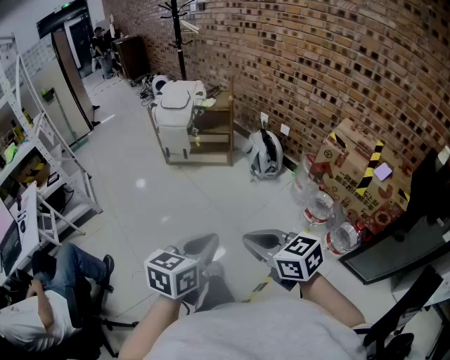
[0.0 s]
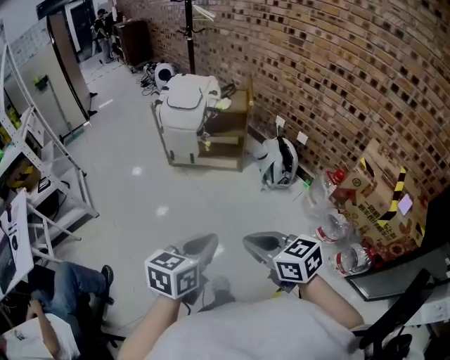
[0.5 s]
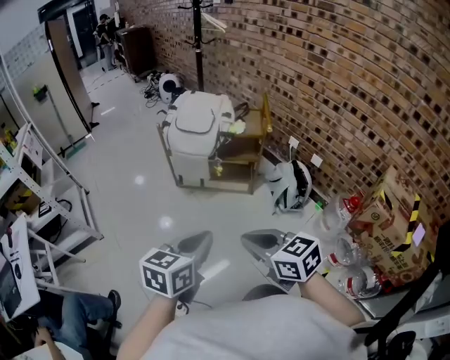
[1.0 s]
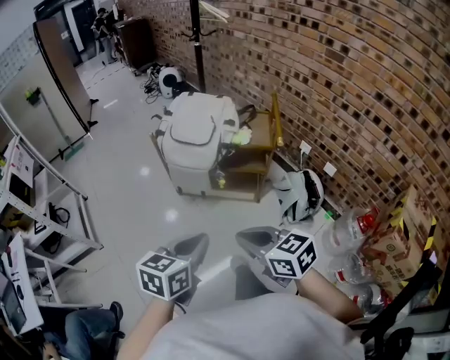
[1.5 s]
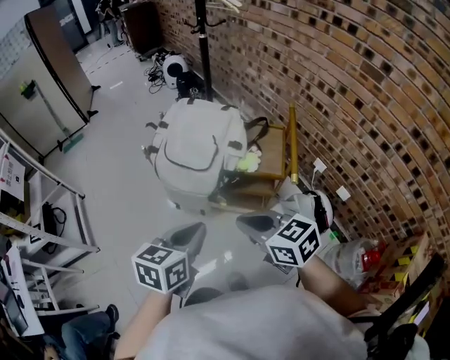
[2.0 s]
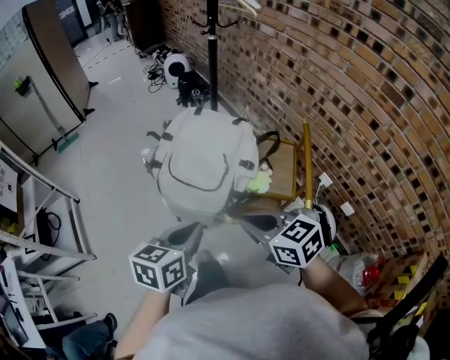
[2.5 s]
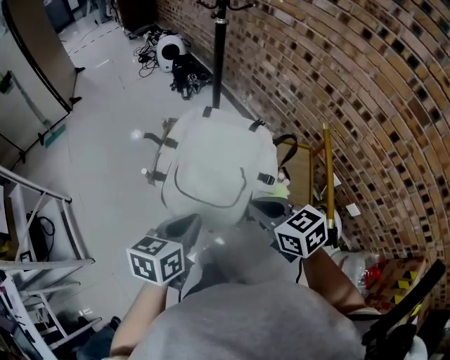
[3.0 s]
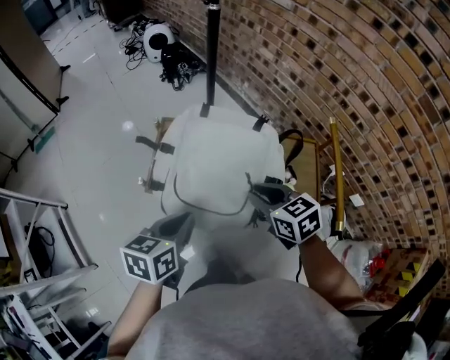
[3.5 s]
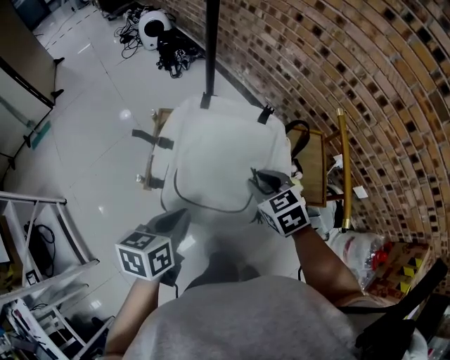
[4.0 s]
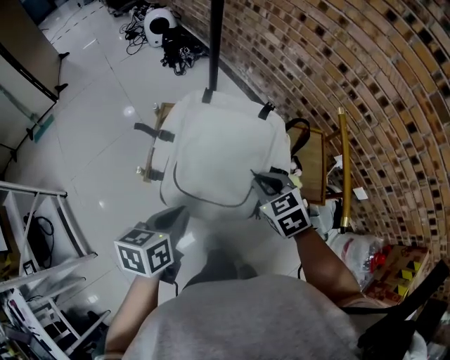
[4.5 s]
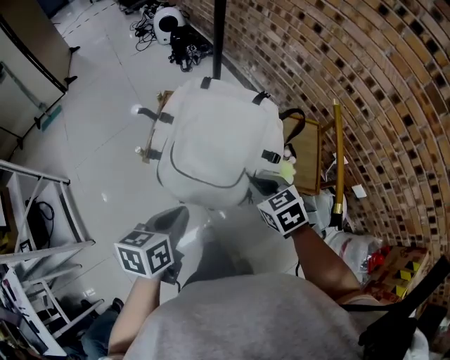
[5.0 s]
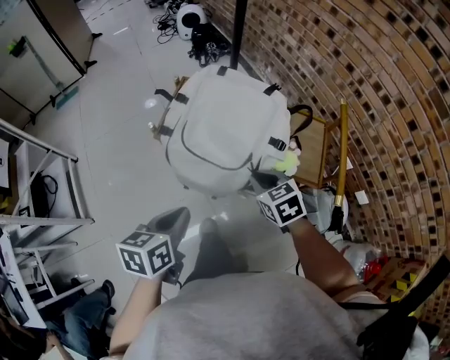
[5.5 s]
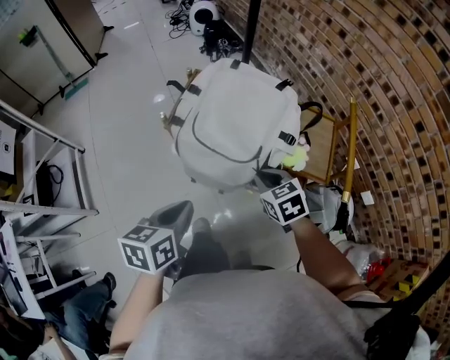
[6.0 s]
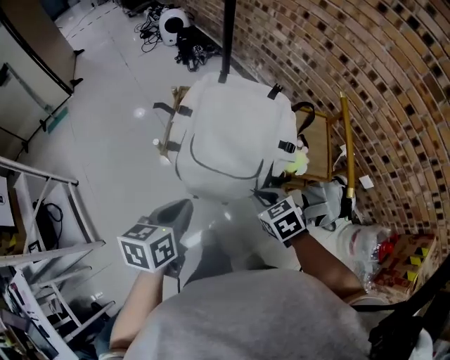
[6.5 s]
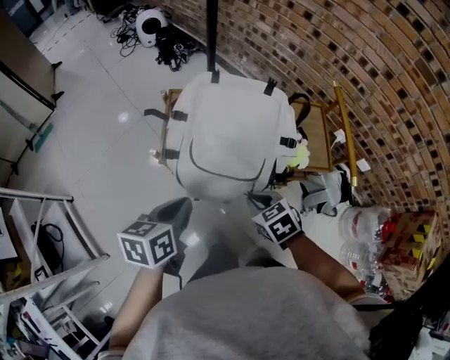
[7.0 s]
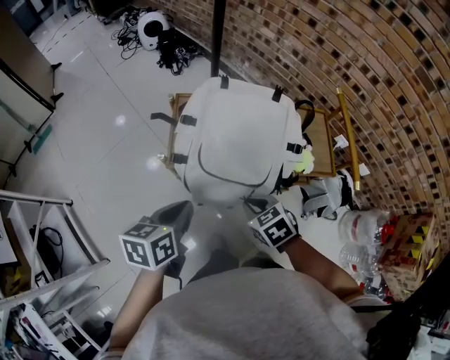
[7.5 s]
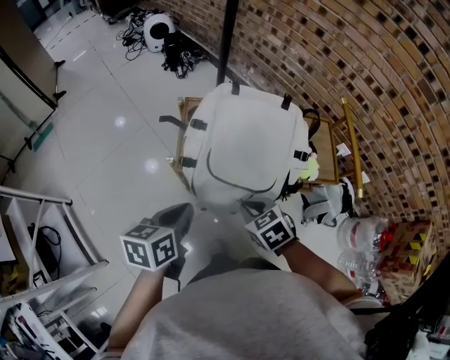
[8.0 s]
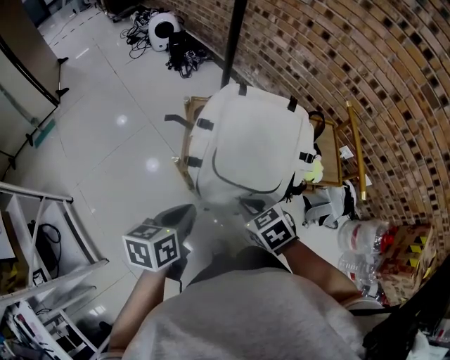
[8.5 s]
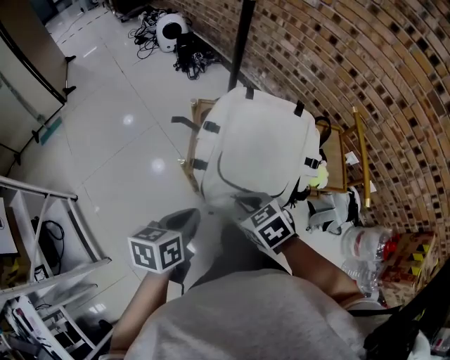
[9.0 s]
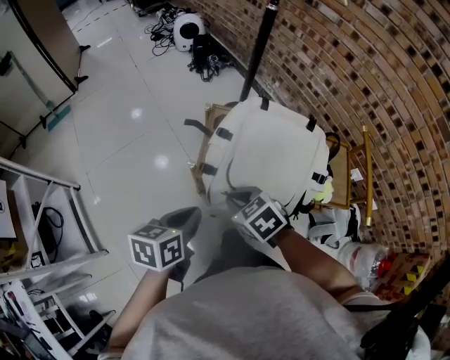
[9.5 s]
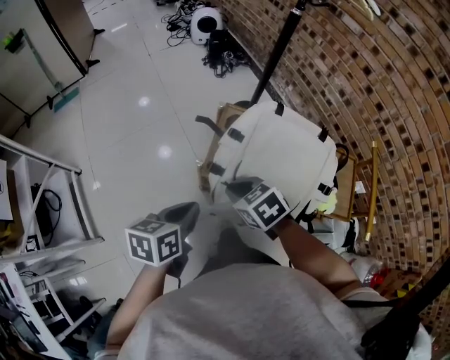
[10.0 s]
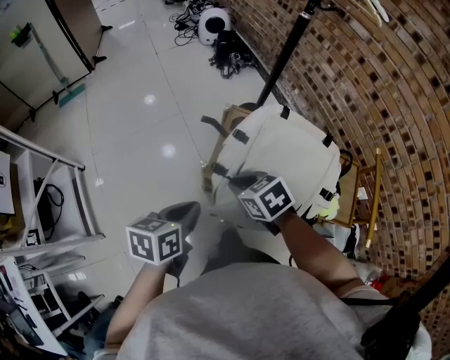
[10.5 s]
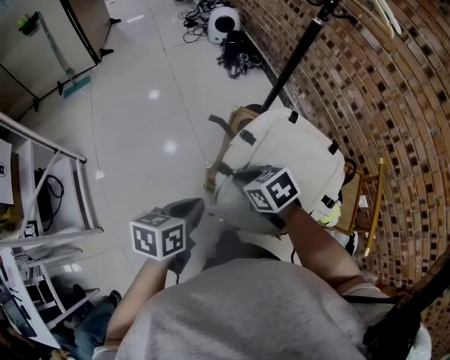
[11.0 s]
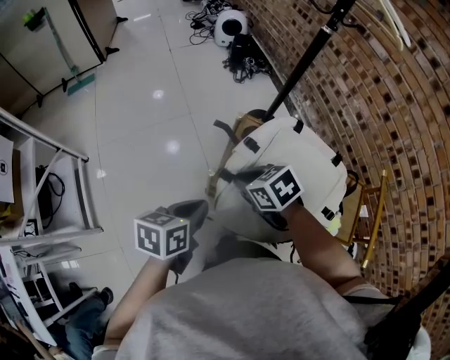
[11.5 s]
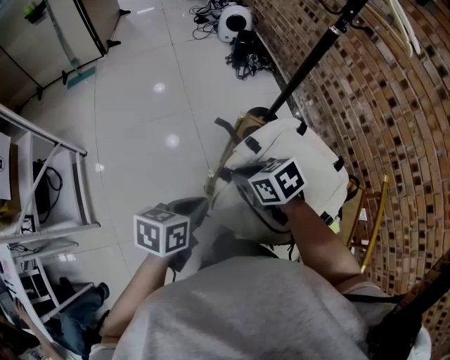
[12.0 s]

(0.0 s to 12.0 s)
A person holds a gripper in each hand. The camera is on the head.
0.0 s - 2.0 s: The pair of grippers is taken forward, about 80 cm.
2.0 s - 4.0 s: The left gripper heads forward and to the left, covering about 30 cm, while the right gripper goes approximately 35 cm forward and downward, swivels about 30 degrees, and opens its fingers.
4.0 s - 6.0 s: The two grippers go about 15 cm backward.
6.0 s - 8.0 s: The left gripper heads to the left and forward, covering approximately 15 cm. Meanwhile the right gripper travels to the left by roughly 15 cm.
8.0 s - 10.0 s: The left gripper shifts by some 5 cm. The right gripper goes roughly 15 cm to the left and forward.
10.0 s - 12.0 s: The right gripper heads forward, covering approximately 10 cm.

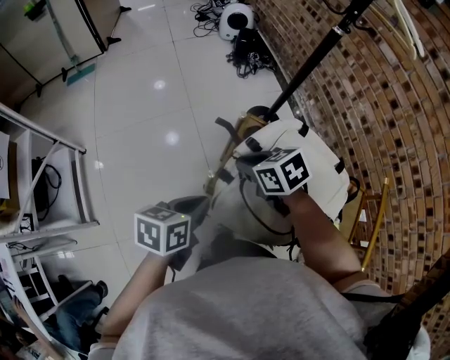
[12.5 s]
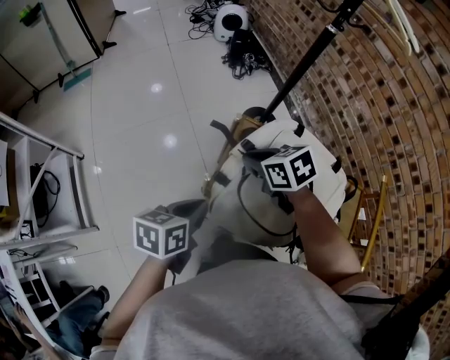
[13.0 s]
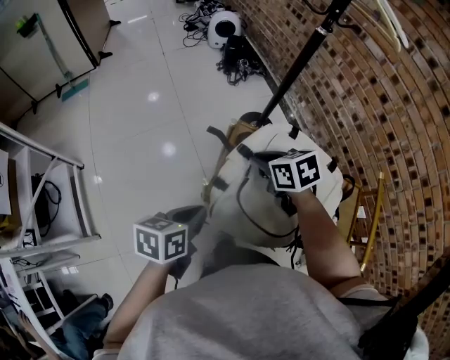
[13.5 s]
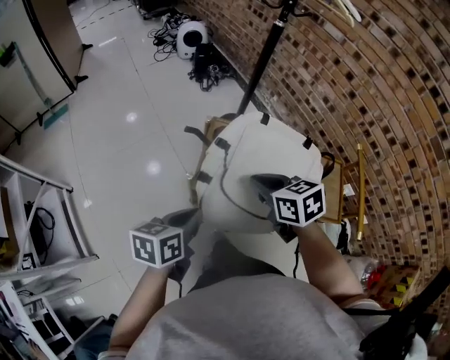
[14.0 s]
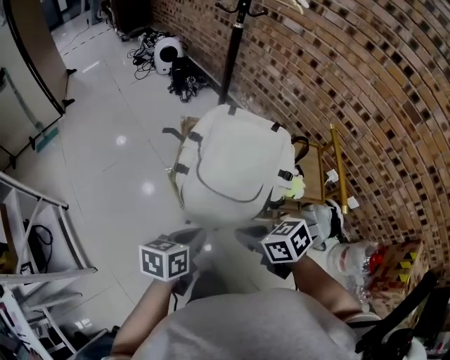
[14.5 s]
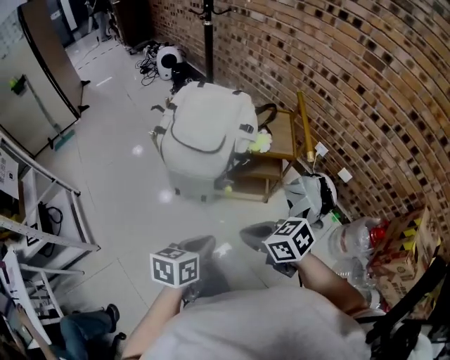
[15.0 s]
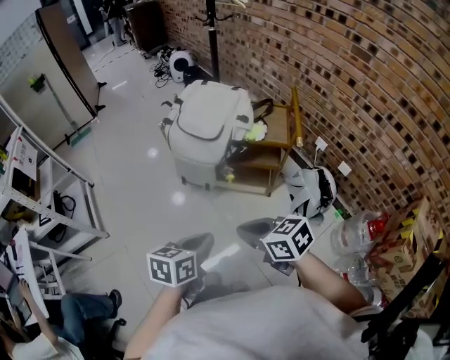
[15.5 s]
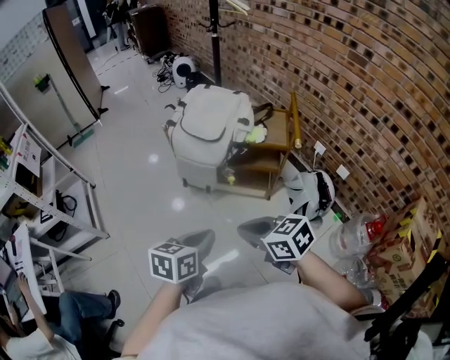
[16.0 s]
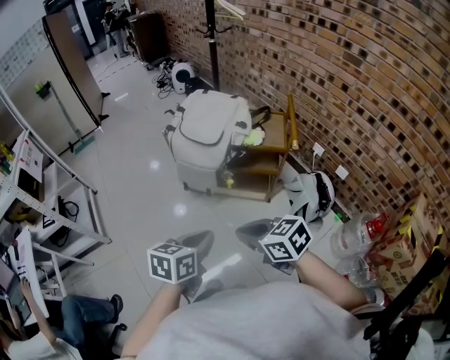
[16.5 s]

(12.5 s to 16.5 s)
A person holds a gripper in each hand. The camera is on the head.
12.5 s - 14.5 s: The right gripper shifts roughly 30 cm backward, and changes its angle by about 20 degrees. Meanwhile the left gripper heads backward and to the right, covering approximately 20 cm.
14.5 s - 16.5 s: Both grippers travel together backward, about 35 cm.

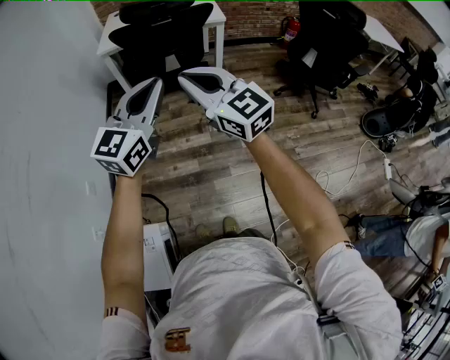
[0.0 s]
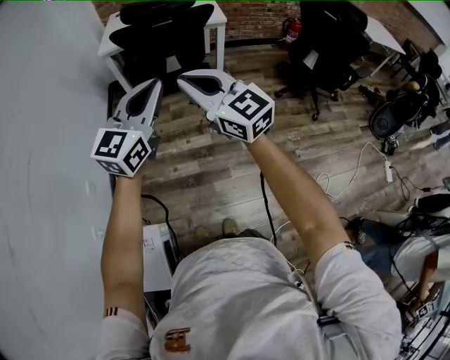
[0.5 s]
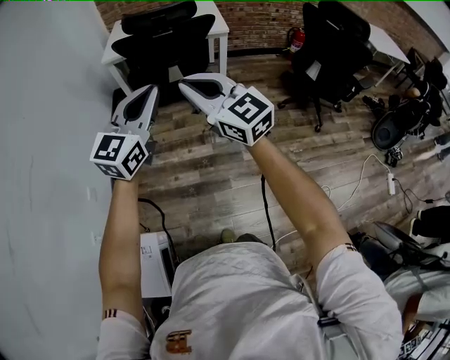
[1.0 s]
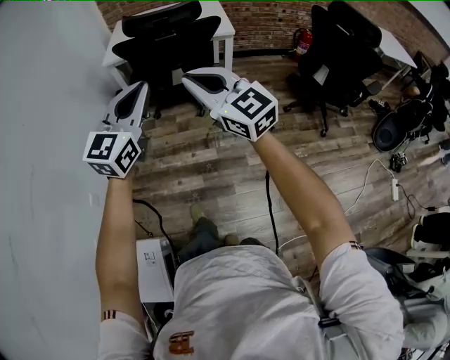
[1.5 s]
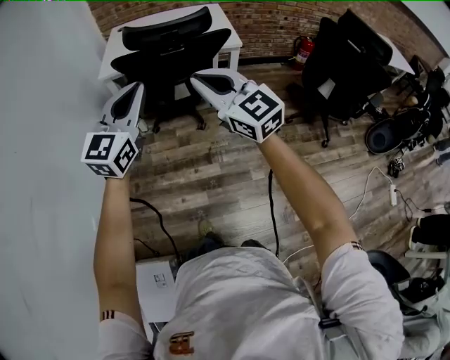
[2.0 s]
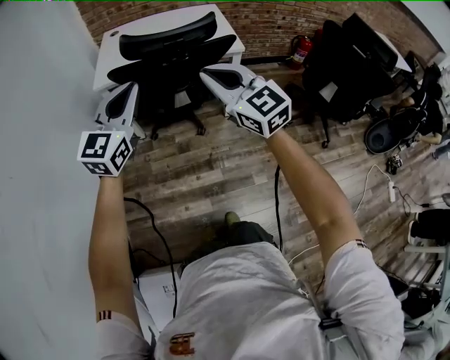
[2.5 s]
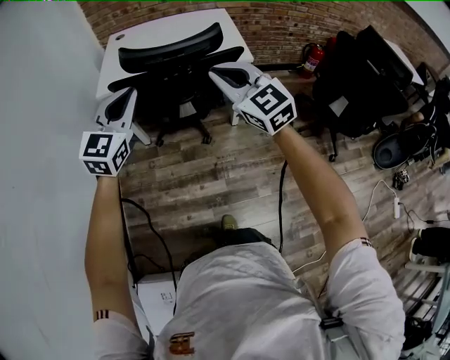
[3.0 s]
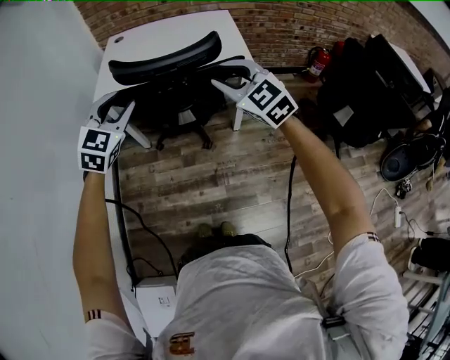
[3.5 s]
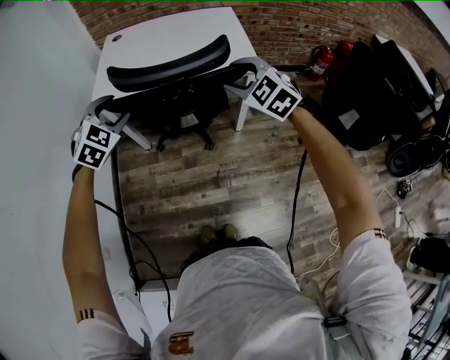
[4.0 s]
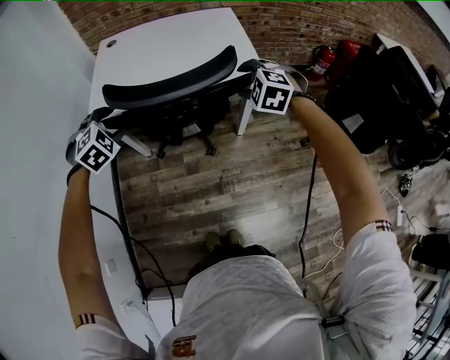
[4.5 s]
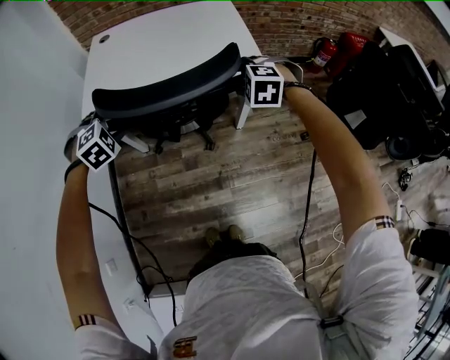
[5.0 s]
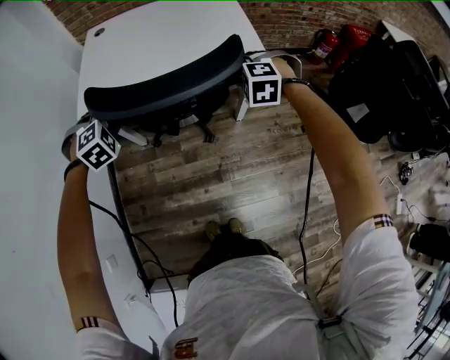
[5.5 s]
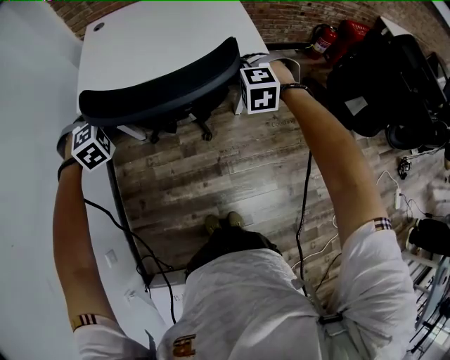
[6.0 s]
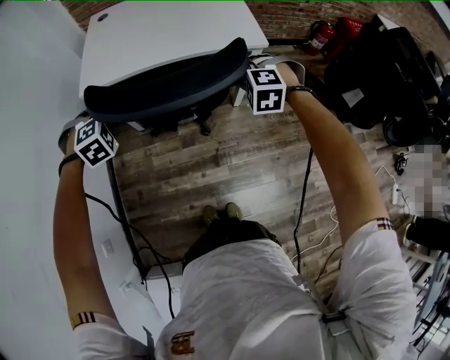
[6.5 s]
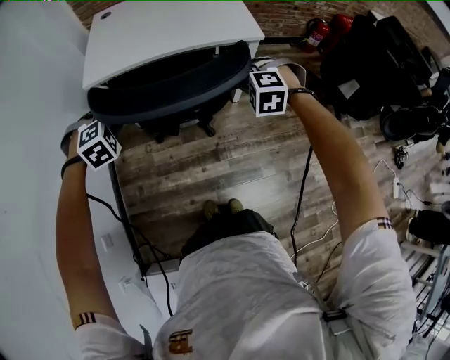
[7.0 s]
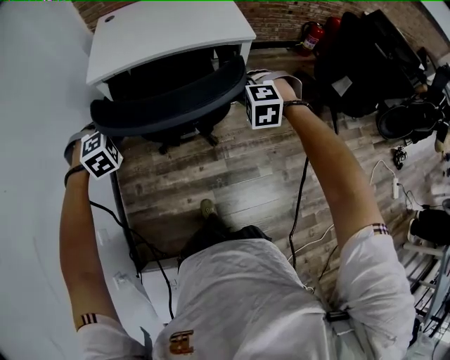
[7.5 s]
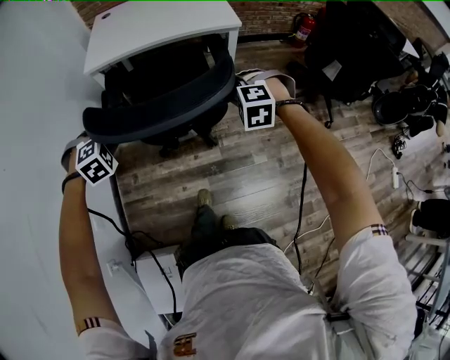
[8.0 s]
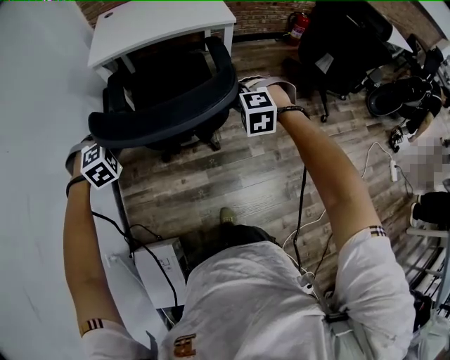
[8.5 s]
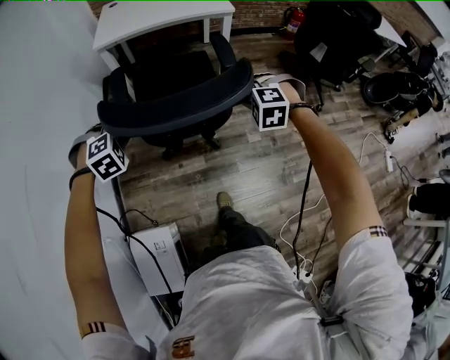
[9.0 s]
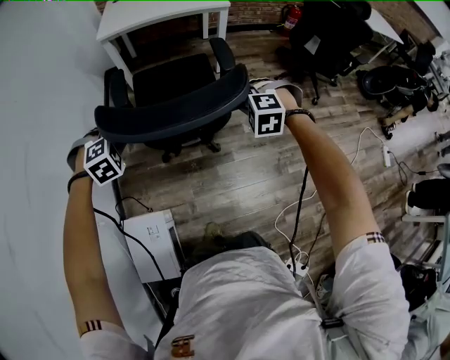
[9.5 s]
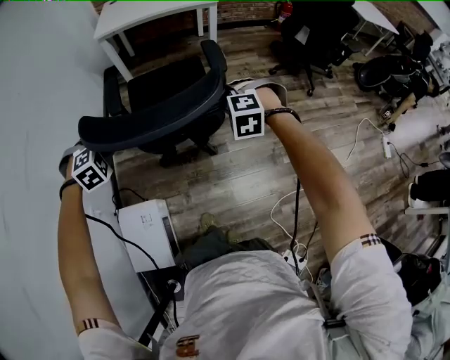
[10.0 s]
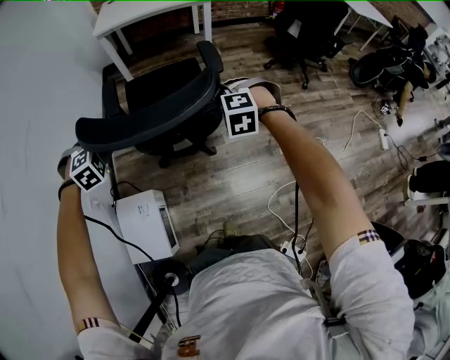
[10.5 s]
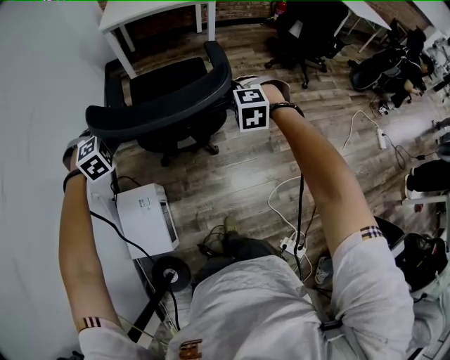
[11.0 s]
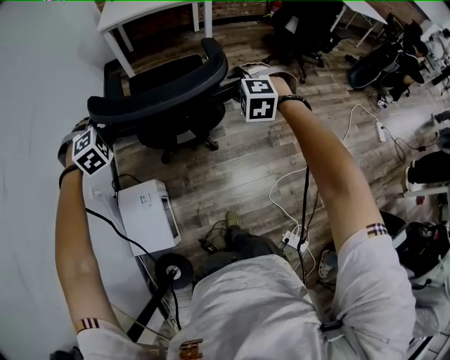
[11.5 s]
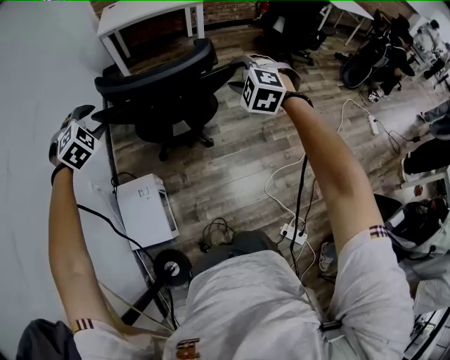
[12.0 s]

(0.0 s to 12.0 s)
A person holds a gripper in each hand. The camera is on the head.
0.0 s - 2.0 s: Both grippers travel together forward, some 25 cm.
2.0 s - 4.0 s: The right gripper heads forward, covering approximately 30 cm, points its fingers some 30 degrees further downward, and opens up, while the left gripper is displaced forward and downward by some 35 cm, angles its fingers downward, by roughly 40 degrees, and opens.
4.0 s - 6.0 s: Both grippers move downward and forward, roughly 15 cm. The right gripper changes its angle by some 40 degrees, and closes. Meanwhile the left gripper changes its angle by some 40 degrees, and closes its fingers.
6.0 s - 8.0 s: The two grippers go about 35 cm backward.
8.0 s - 10.0 s: The pair of grippers is taken backward, some 40 cm.
10.0 s - 12.0 s: The grippers both shift backward and upward by approximately 20 cm. The left gripper opens up. The right gripper changes its angle by approximately 20 degrees, and opens its fingers.
